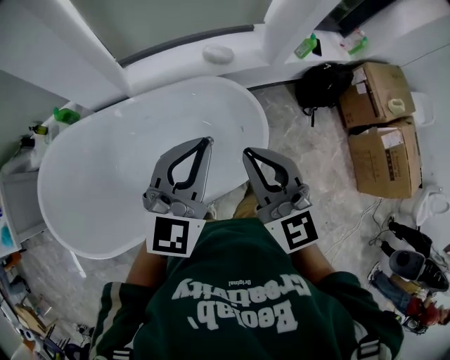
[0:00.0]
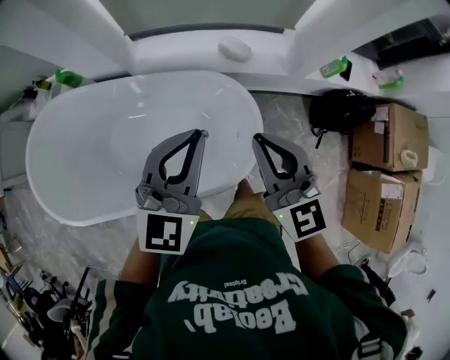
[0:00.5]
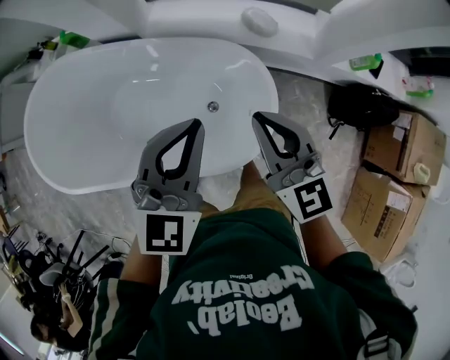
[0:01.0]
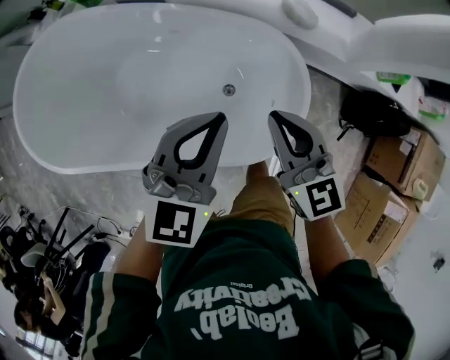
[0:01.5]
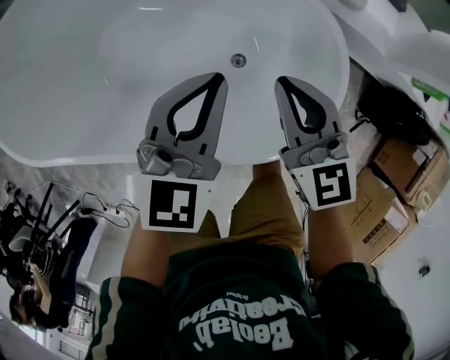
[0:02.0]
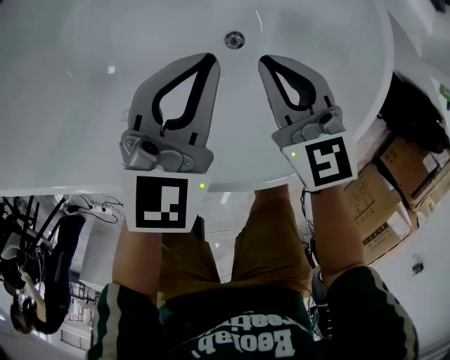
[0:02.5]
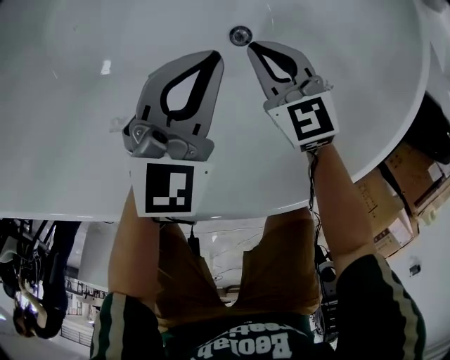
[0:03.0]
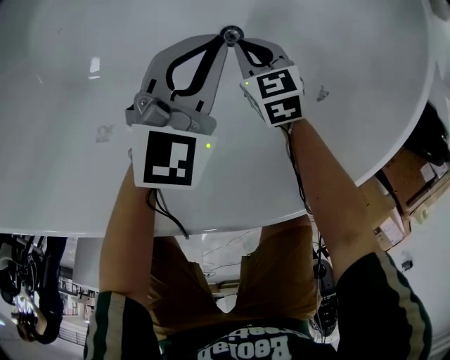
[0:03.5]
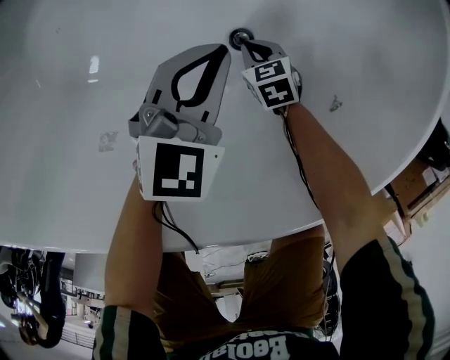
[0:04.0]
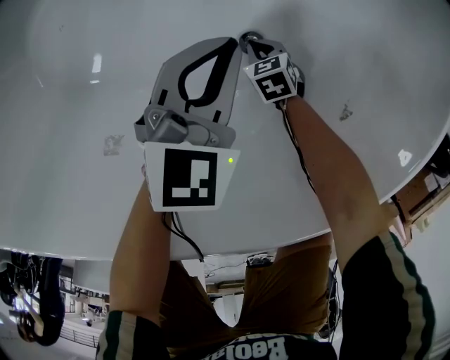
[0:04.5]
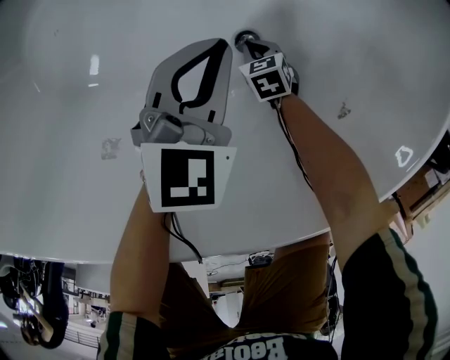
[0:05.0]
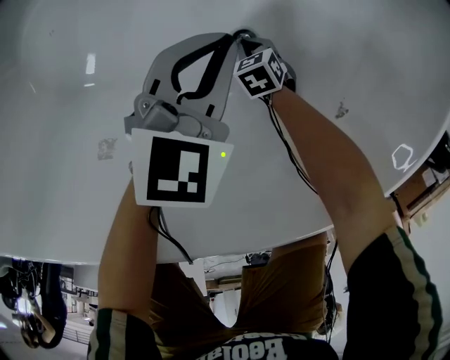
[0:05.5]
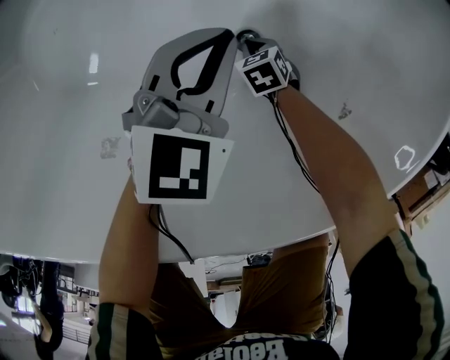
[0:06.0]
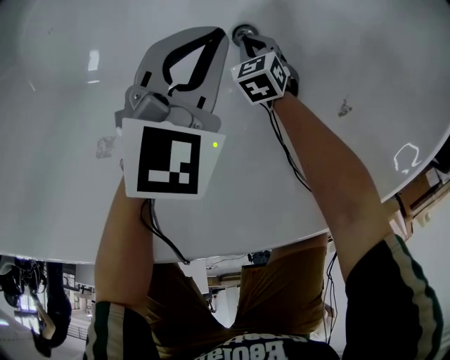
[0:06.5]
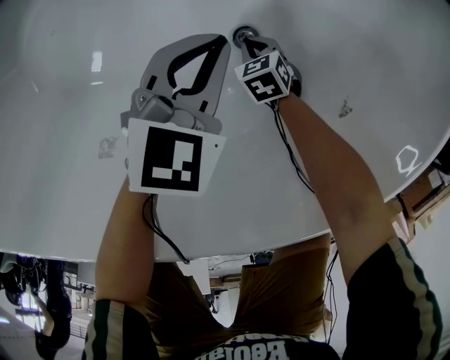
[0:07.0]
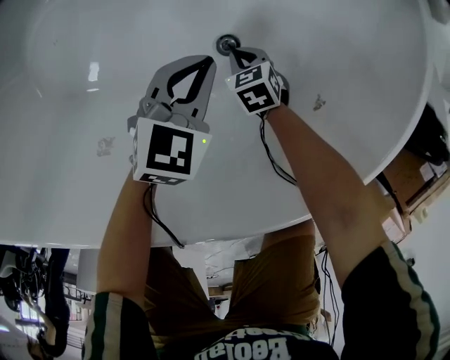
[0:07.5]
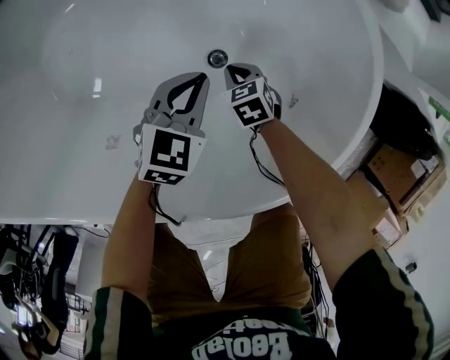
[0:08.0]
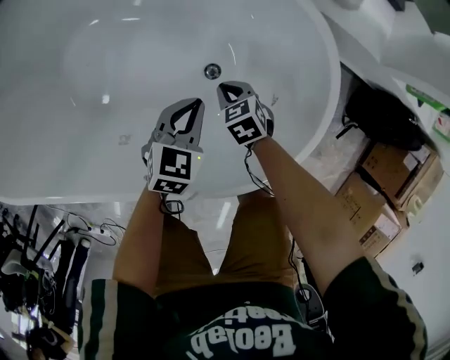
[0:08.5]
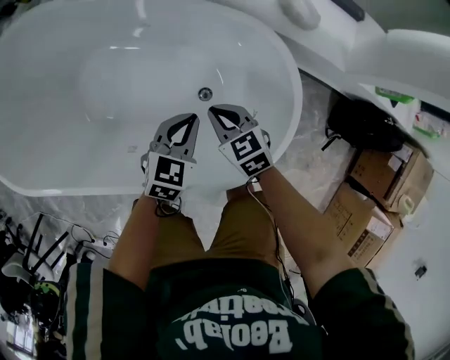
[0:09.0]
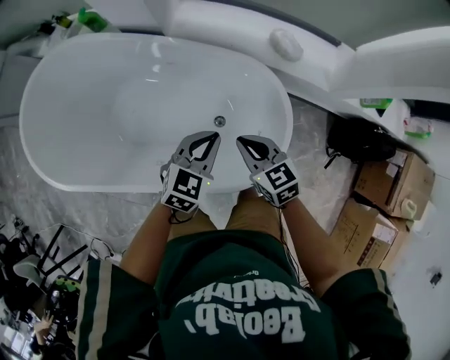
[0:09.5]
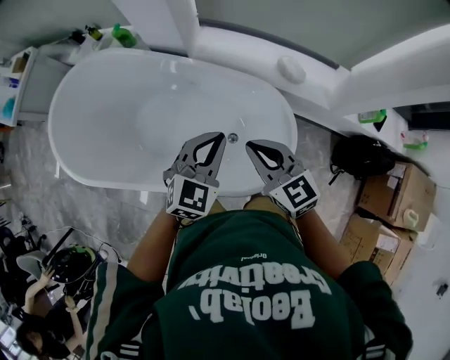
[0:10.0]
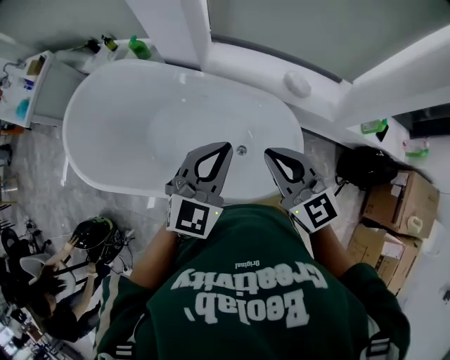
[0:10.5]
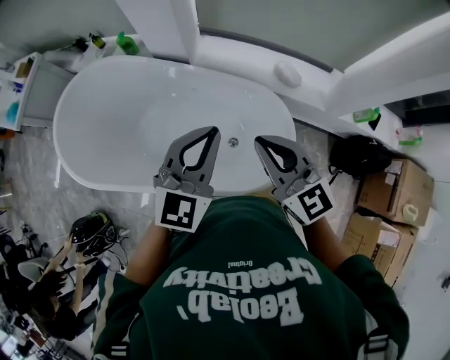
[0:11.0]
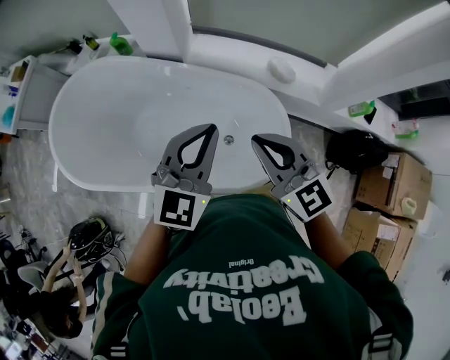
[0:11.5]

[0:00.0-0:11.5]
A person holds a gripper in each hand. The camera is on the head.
0.0 to 2.0 s: The grippers both shift downward by approximately 30 cm. The left gripper turns by about 40 degrees. Meanwhile the right gripper turns by approximately 30 degrees.
2.0 to 4.0 s: The right gripper is displaced downward by roughly 50 cm, and tips its fingers downward by some 40 degrees. Meanwhile the left gripper shifts roughly 35 cm downward.
4.0 to 6.0 s: The right gripper shifts approximately 5 cm downward.
6.0 to 7.5 s: The right gripper is displaced upward by some 5 cm.
7.5 to 9.5 s: Both grippers move upward, approximately 50 cm. The right gripper points its fingers approximately 30 degrees further upward.
9.5 to 11.5 s: Both grippers move upward, about 25 cm. The left gripper changes its angle by about 30 degrees. Meanwhile the right gripper swivels roughly 30 degrees.

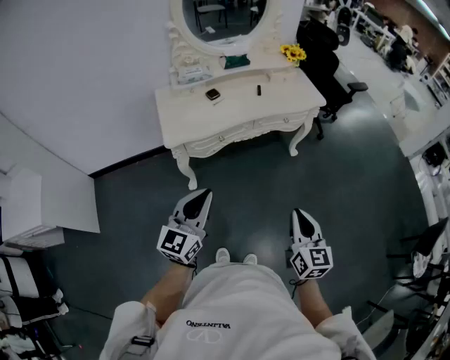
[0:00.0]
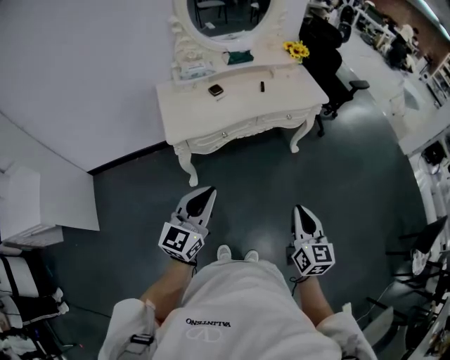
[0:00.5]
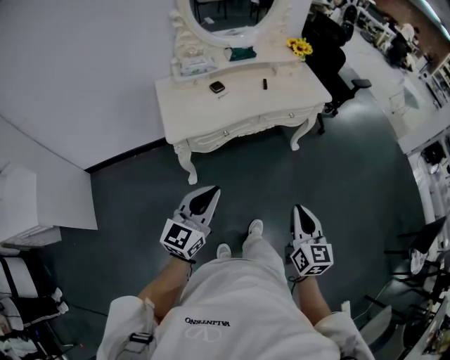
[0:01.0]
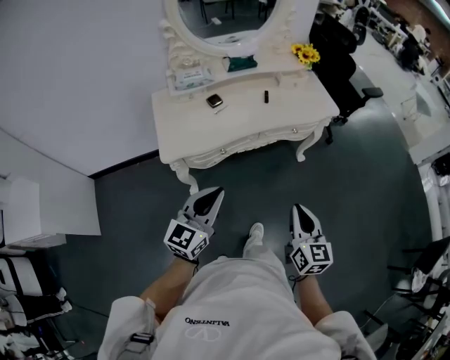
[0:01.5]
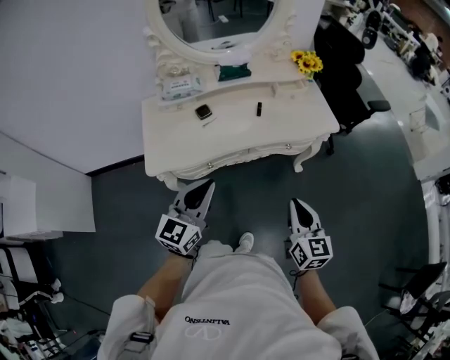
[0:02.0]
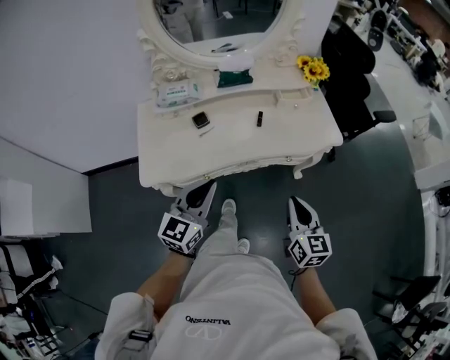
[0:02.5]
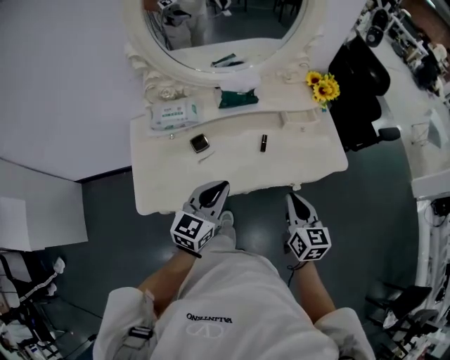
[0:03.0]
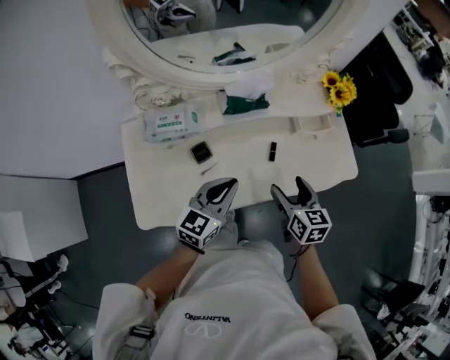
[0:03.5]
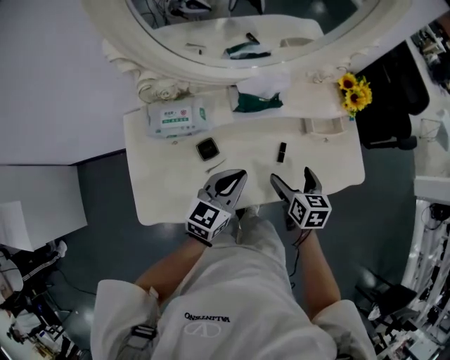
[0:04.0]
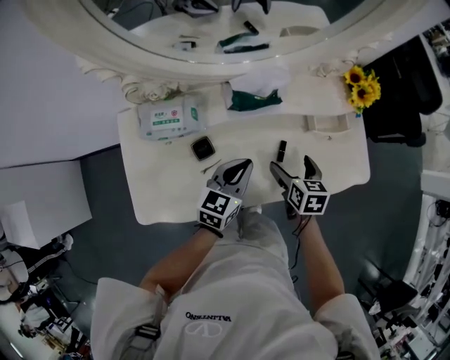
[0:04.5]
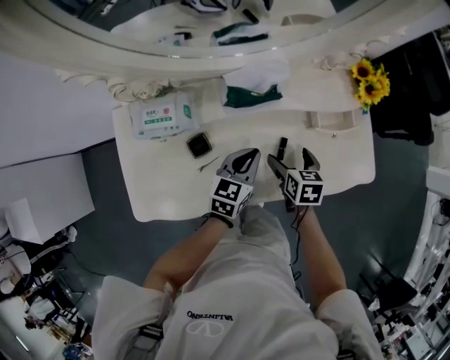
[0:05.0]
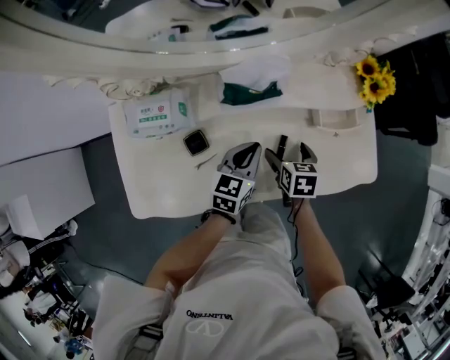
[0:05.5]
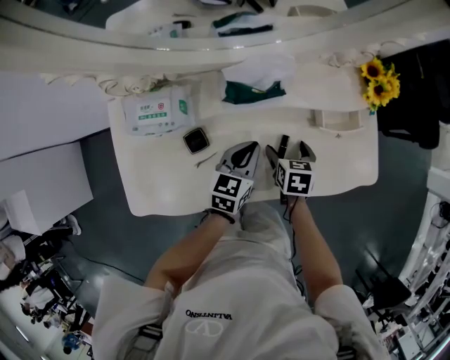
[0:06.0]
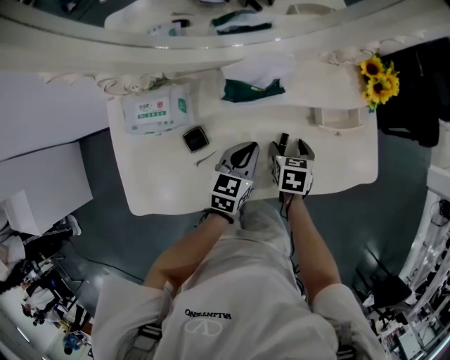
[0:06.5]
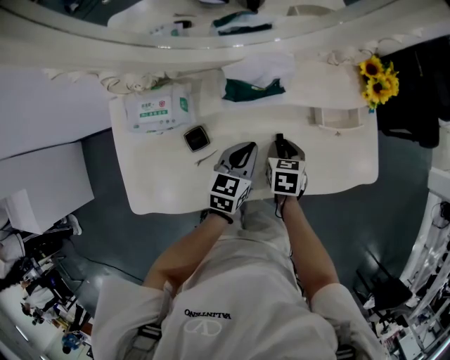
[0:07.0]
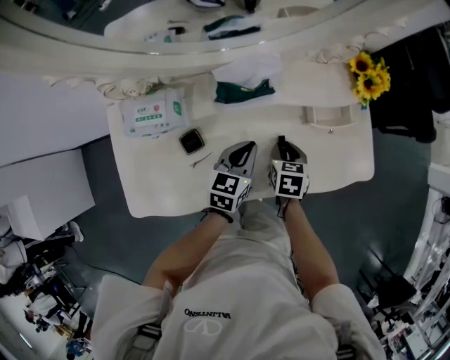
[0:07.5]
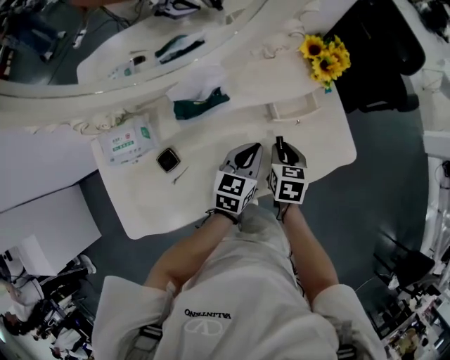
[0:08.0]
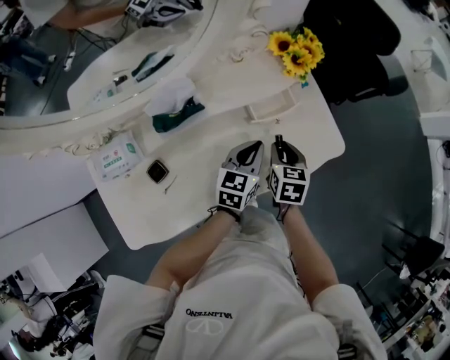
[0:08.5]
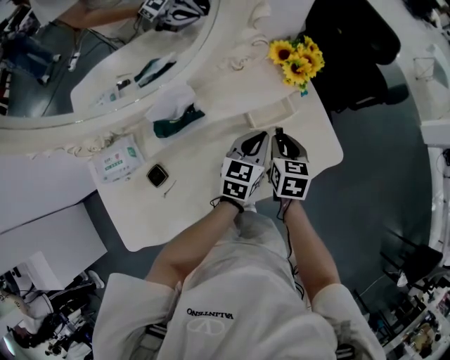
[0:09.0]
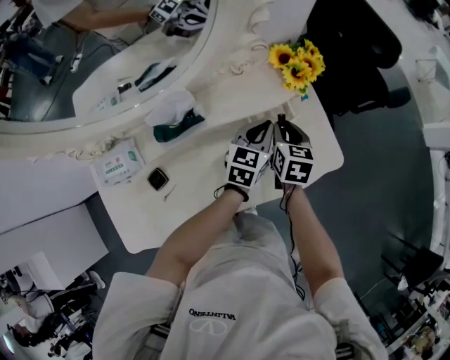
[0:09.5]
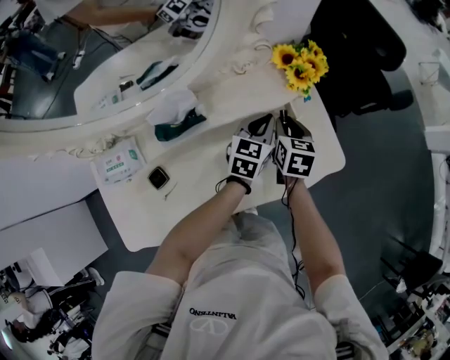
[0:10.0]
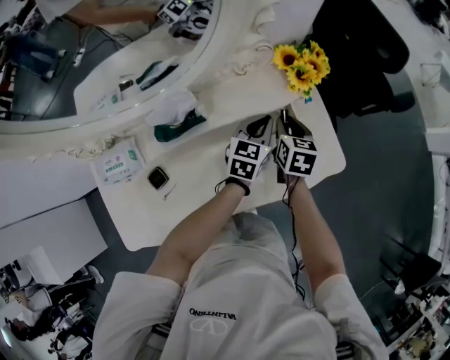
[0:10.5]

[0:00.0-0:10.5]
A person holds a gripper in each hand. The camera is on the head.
0.0 to 2.0 s: The grippers both shift forward by some 25 cm.
2.0 to 4.0 s: The two grippers go some 35 cm forward. The right gripper rotates approximately 30 degrees, and opens.
4.0 to 6.5 s: The left gripper is displaced downward, forward and to the right by roughly 15 cm; the right gripper travels downward and forward by about 15 cm, and swivels some 20 degrees.
6.5 to 8.5 s: The left gripper is displaced to the right by approximately 20 cm. The right gripper heads to the right and upward, covering roughly 15 cm, swivels about 20 degrees, and closes its fingers.
8.5 to 10.5 s: The grippers both shift forward by some 10 cm.

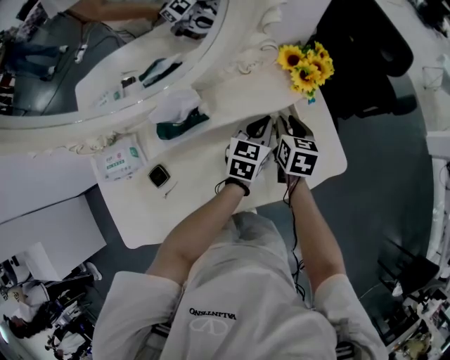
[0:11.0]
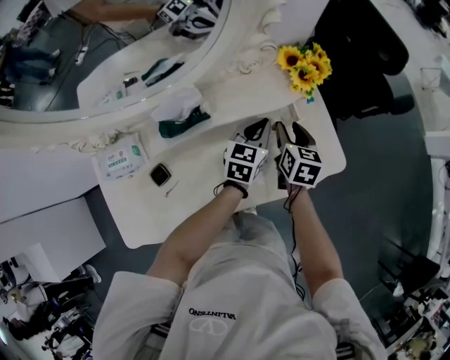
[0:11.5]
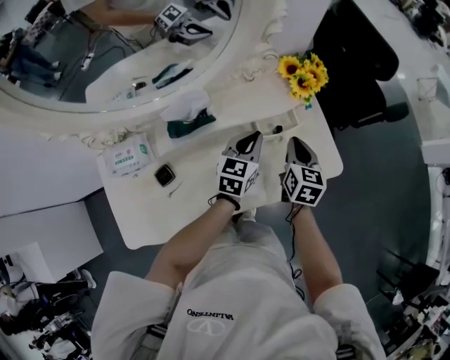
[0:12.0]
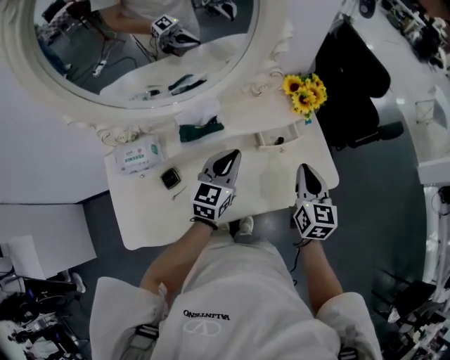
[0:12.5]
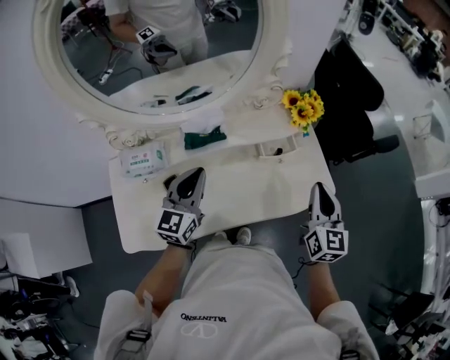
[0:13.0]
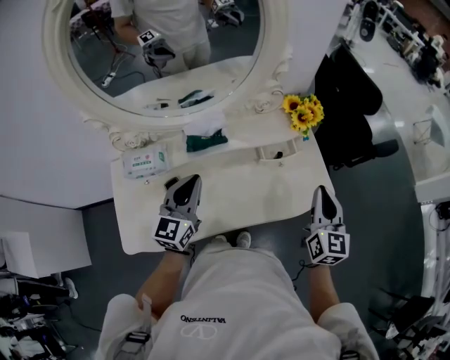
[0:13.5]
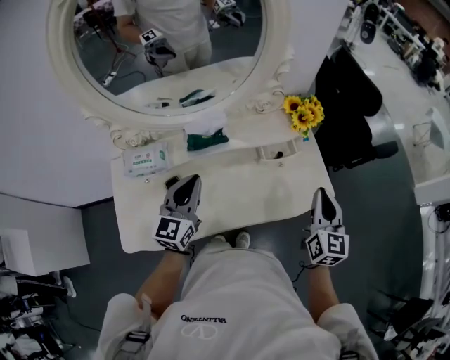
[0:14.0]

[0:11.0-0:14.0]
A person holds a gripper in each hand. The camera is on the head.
11.0 to 12.5 s: The left gripper moves backward, upward and to the left, roughly 20 cm, while the right gripper shifts about 20 cm backward and upward, and changes its angle by about 20 degrees.
12.5 to 14.0 s: The right gripper moves upward, roughly 5 cm; the left gripper shifts about 15 cm to the left, backward and upward.

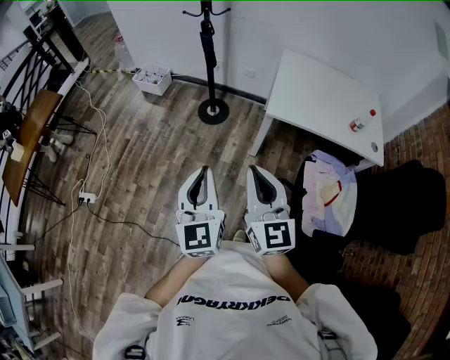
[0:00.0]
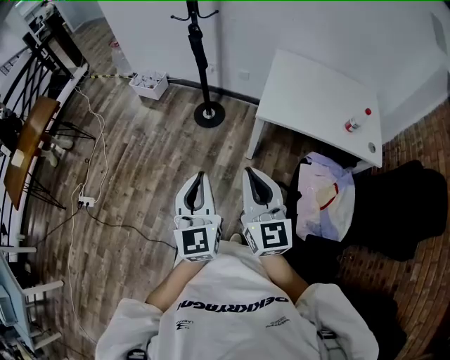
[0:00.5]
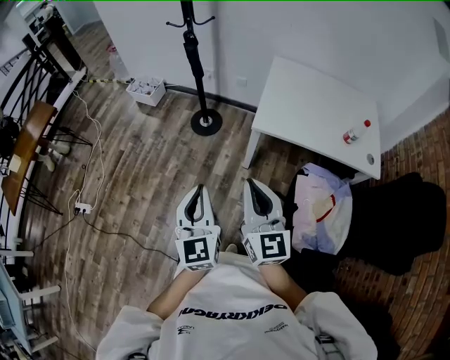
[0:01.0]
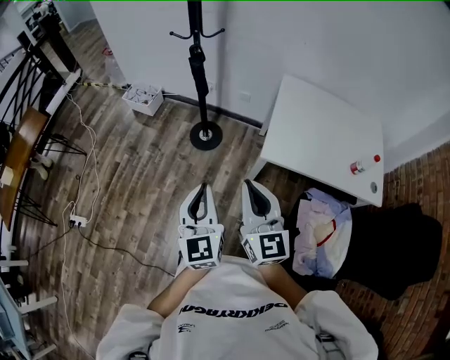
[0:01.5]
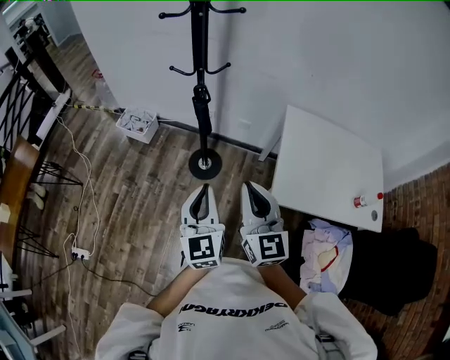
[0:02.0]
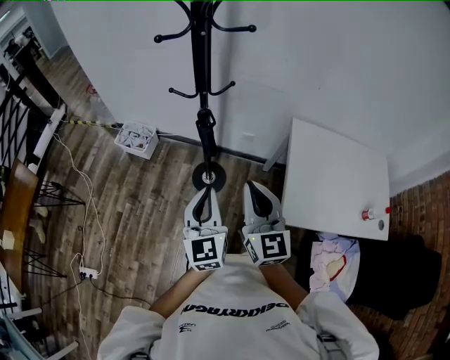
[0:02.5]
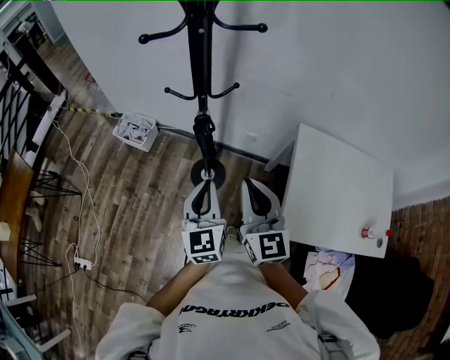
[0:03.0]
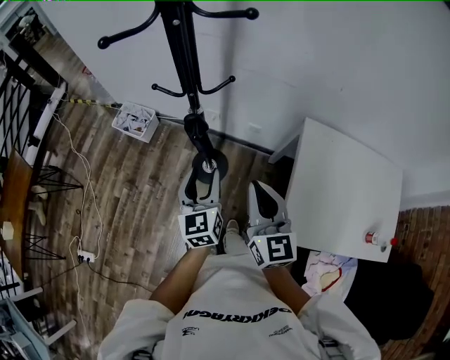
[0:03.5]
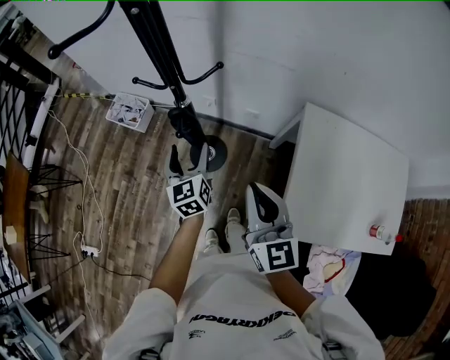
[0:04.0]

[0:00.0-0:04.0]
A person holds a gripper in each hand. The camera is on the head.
0.0 to 2.0 s: Both grippers are carried forward, roughly 40 cm.
2.0 to 4.0 s: The right gripper travels forward by some 25 cm. The left gripper heads forward and downward, covering about 40 cm, and opens up.
